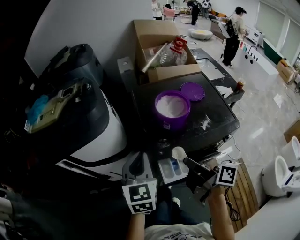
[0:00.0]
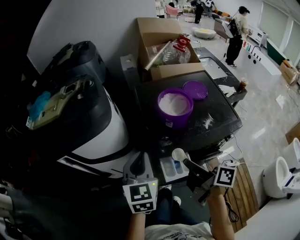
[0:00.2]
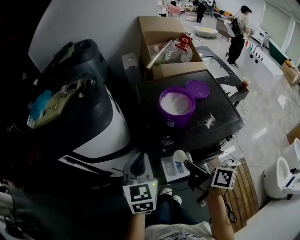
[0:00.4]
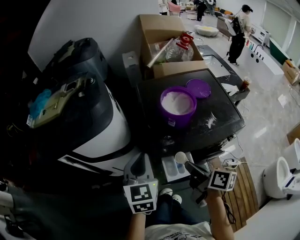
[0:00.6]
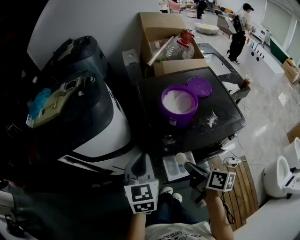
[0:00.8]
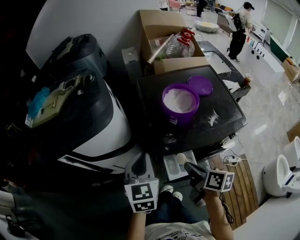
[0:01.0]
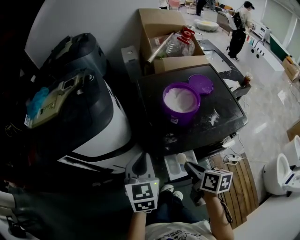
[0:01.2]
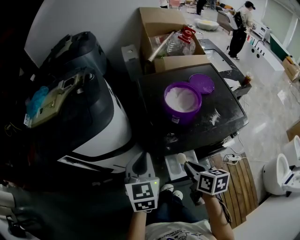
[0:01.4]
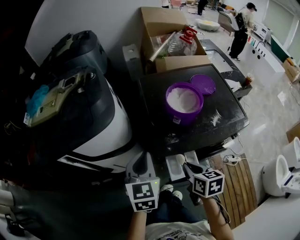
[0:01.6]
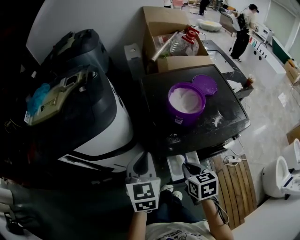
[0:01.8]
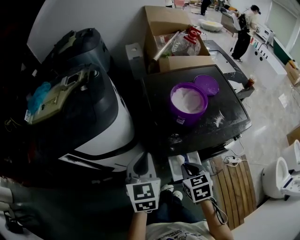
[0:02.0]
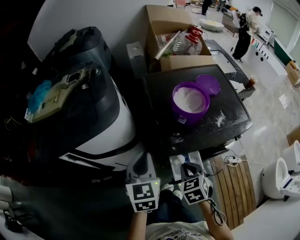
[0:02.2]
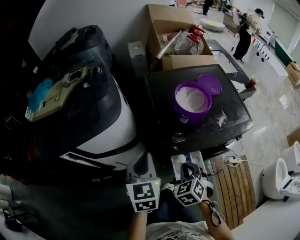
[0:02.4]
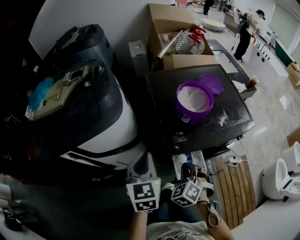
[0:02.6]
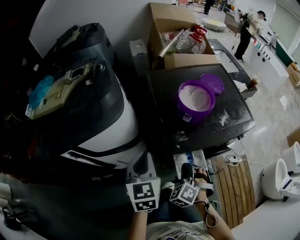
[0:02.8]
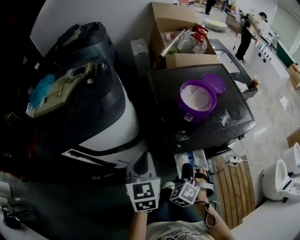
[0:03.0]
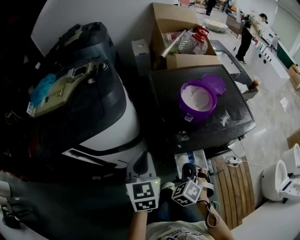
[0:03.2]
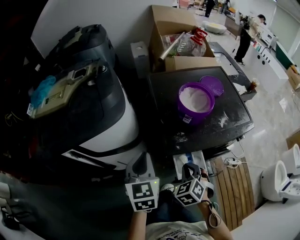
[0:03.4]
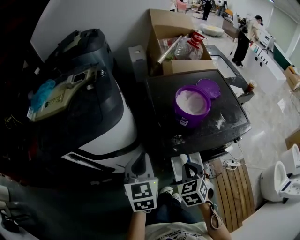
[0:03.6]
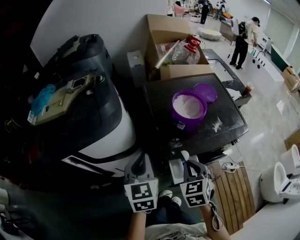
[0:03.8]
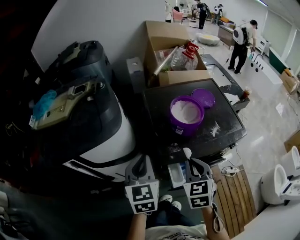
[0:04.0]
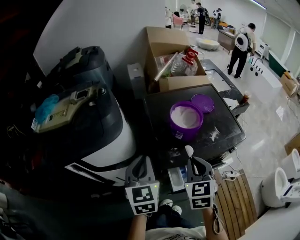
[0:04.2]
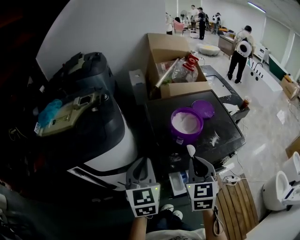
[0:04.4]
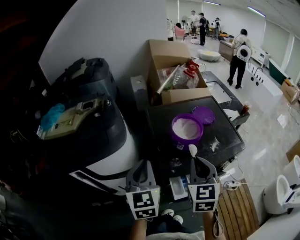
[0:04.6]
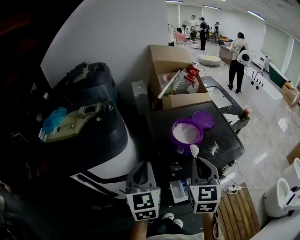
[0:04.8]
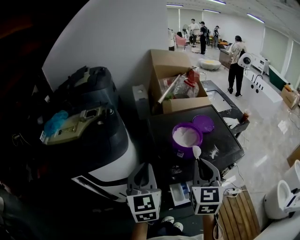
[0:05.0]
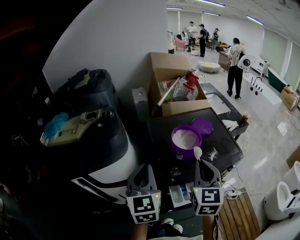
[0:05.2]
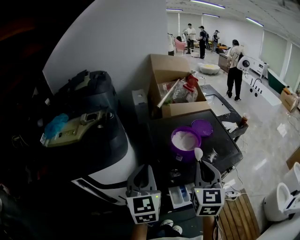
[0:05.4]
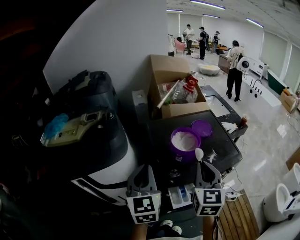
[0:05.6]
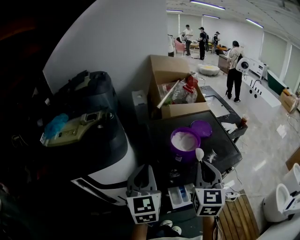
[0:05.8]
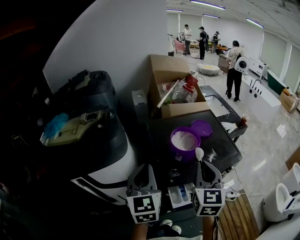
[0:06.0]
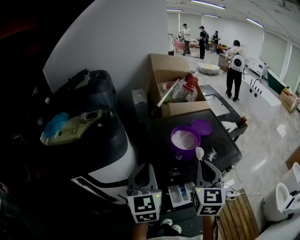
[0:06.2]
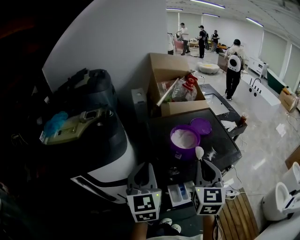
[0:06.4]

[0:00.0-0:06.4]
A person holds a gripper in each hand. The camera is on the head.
0:00.0 to 0:01.6: The right gripper moves downward, about 10 cm, and angles its fingers downward, by roughly 40 degrees, while the left gripper changes place by about 5 cm.
0:01.6 to 0:03.2: The right gripper travels downward by some 5 cm, and rotates around the line of its fingers by some 60 degrees, counterclockwise from behind.
0:03.2 to 0:04.8: The left gripper moves upward, about 10 cm. The right gripper heads upward, covering some 25 cm, and angles its fingers upward, by roughly 40 degrees.
0:04.8 to 0:06.4: The grippers make only small movements.

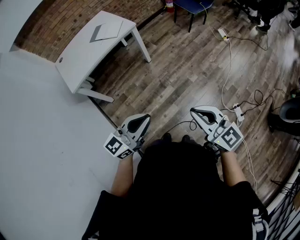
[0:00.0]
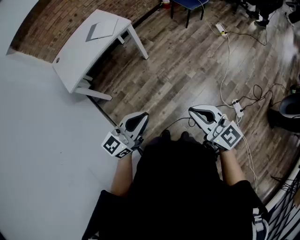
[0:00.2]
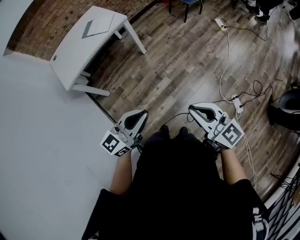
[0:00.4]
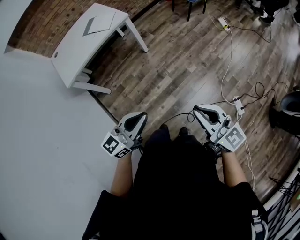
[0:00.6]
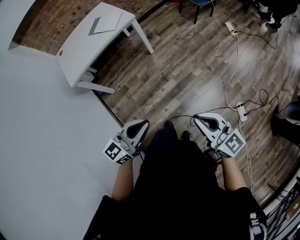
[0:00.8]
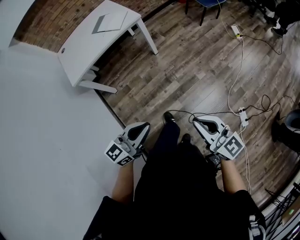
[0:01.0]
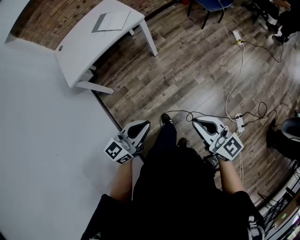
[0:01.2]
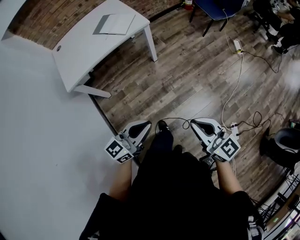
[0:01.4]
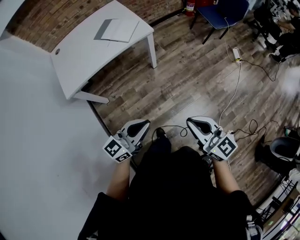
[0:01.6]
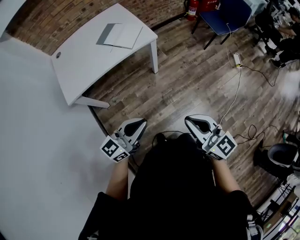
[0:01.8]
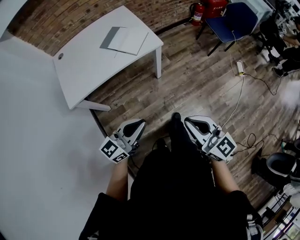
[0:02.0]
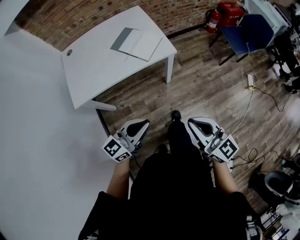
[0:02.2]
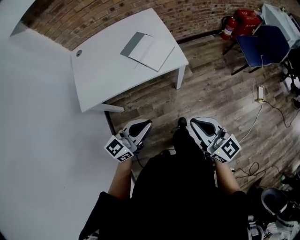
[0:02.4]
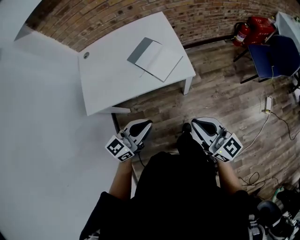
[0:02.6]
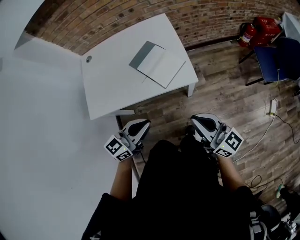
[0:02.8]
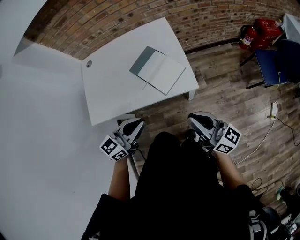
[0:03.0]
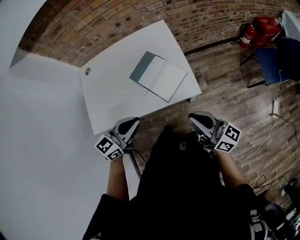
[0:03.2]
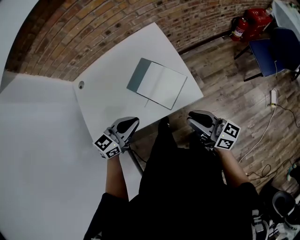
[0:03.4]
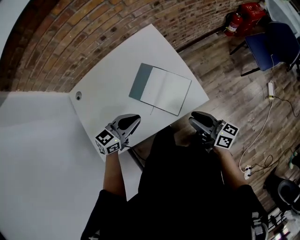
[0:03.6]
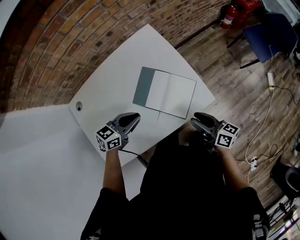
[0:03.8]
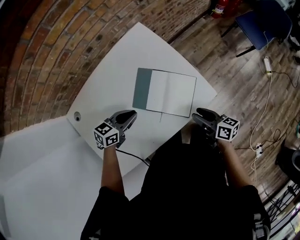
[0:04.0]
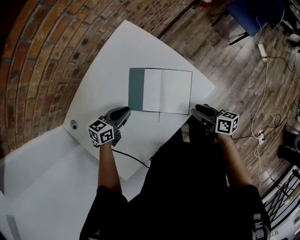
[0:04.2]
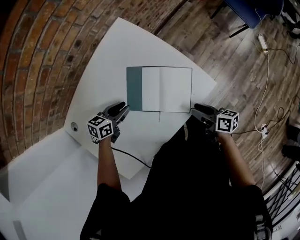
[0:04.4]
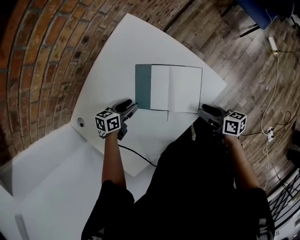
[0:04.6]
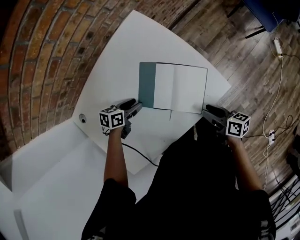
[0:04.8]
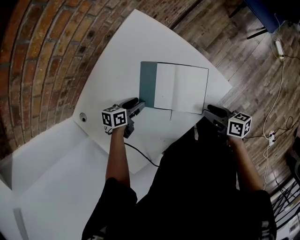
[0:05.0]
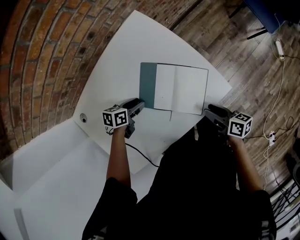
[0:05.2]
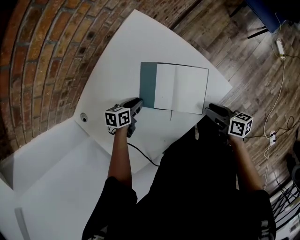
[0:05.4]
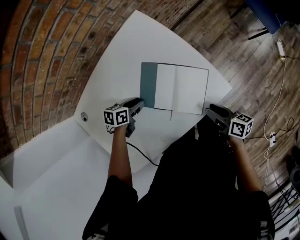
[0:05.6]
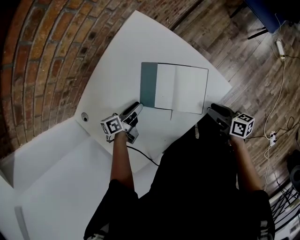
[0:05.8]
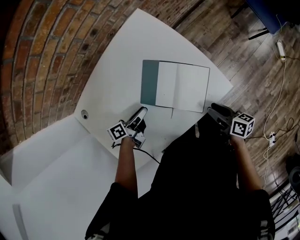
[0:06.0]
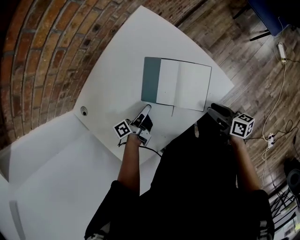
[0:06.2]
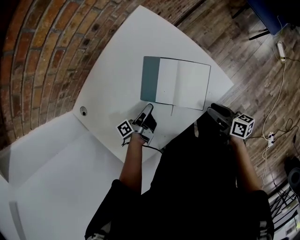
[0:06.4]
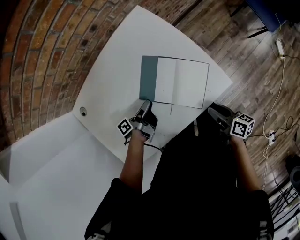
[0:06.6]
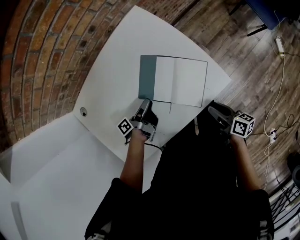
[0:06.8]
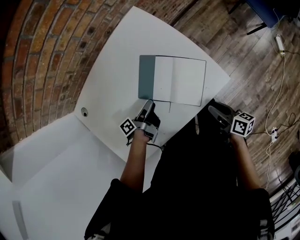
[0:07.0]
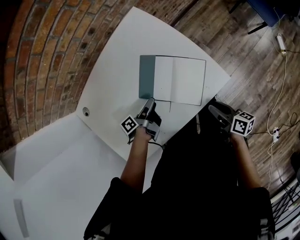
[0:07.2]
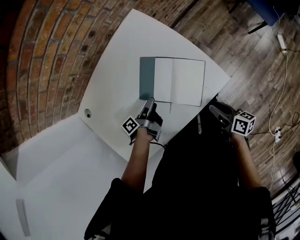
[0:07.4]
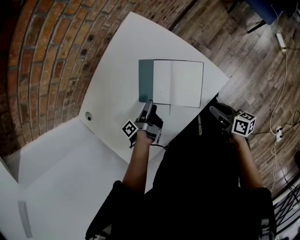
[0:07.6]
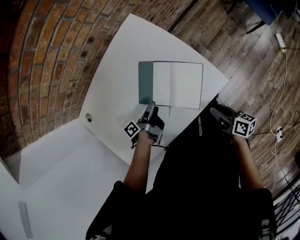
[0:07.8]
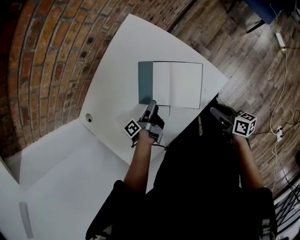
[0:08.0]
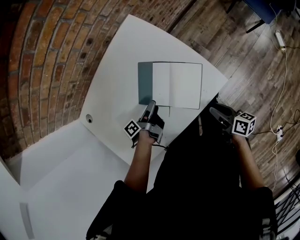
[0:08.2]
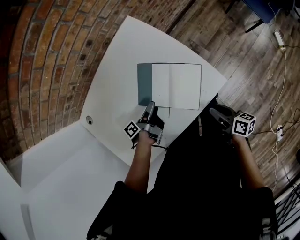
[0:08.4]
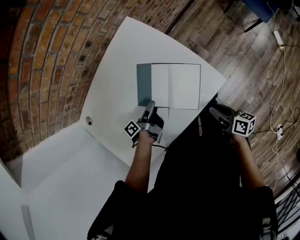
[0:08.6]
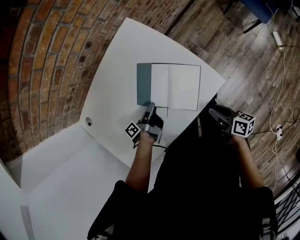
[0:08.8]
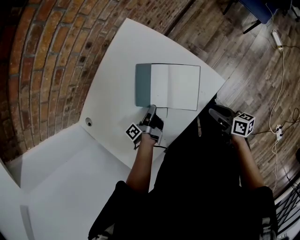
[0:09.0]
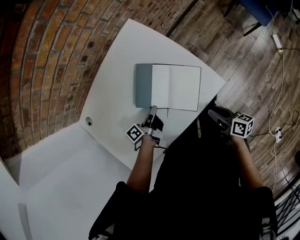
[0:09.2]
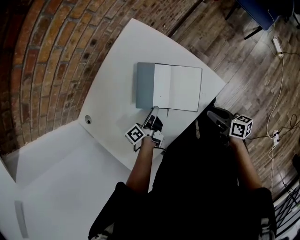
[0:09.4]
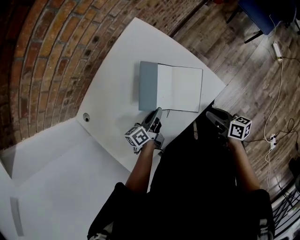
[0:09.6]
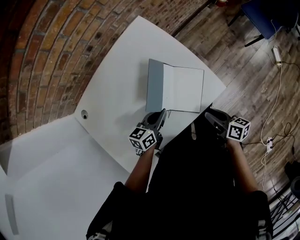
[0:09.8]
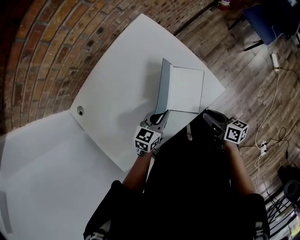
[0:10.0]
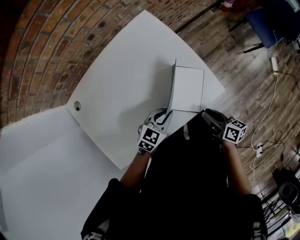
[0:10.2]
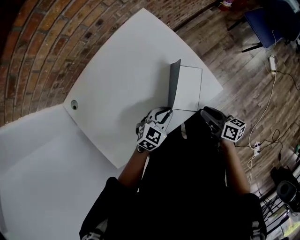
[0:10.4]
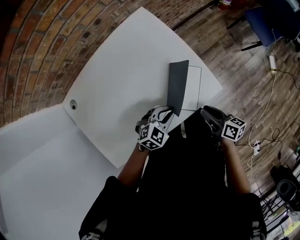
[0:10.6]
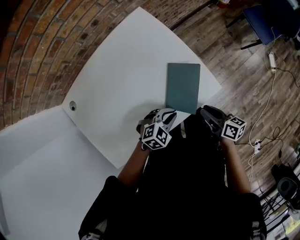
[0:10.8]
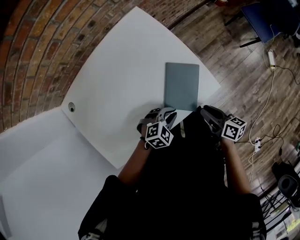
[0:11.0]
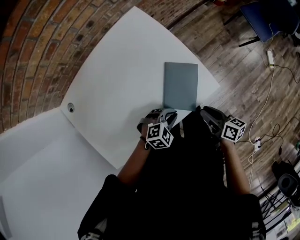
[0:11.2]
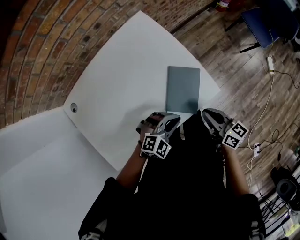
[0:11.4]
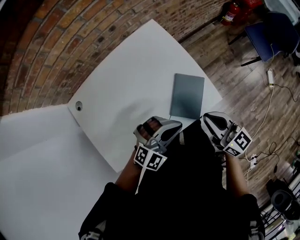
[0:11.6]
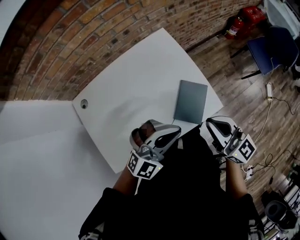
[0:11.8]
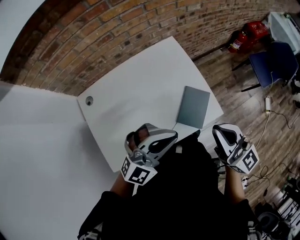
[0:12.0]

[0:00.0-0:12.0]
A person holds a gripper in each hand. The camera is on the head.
0:00.0 to 0:01.6: The two grippers go about 20 cm forward.
0:01.6 to 0:03.0: The pair of grippers is taken forward, roughly 40 cm. The right gripper turns by roughly 40 degrees. The left gripper swivels some 20 degrees.
0:03.0 to 0:04.4: The right gripper travels downward by approximately 25 cm, points its fingers approximately 40 degrees further downward, and opens; the left gripper changes place by approximately 40 cm, and changes its angle by approximately 50 degrees.
0:04.4 to 0:06.0: The left gripper twists approximately 50 degrees counterclockwise, seen from behind.
0:06.0 to 0:07.6: The left gripper swivels approximately 30 degrees, and opens up.
0:07.6 to 0:09.0: The left gripper closes its fingers.
0:09.0 to 0:10.4: The left gripper shifts approximately 10 cm to the right and backward, and rotates around the line of its fingers by about 100 degrees, clockwise from behind.
0:10.4 to 0:12.0: The two grippers go some 30 cm upward. The left gripper angles its fingers upward, by some 30 degrees; the right gripper rolls counterclockwise, seen from behind, by approximately 50 degrees, and closes.

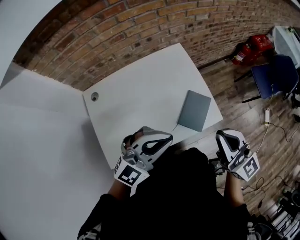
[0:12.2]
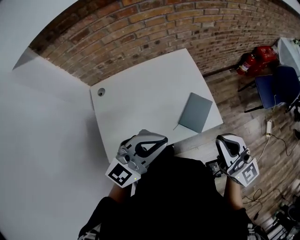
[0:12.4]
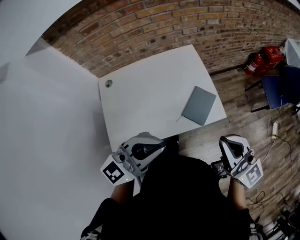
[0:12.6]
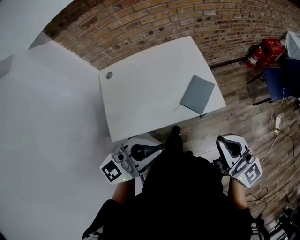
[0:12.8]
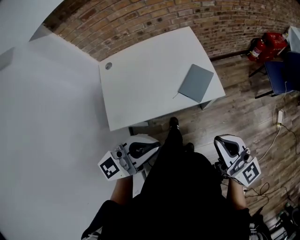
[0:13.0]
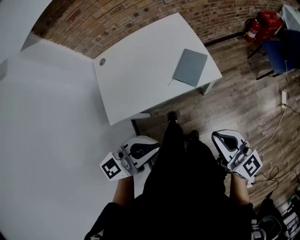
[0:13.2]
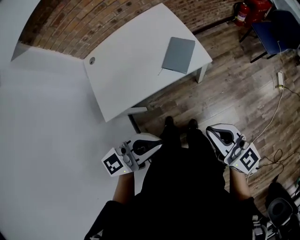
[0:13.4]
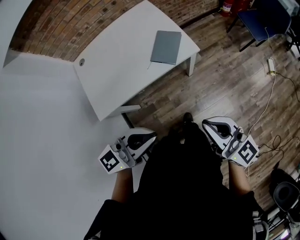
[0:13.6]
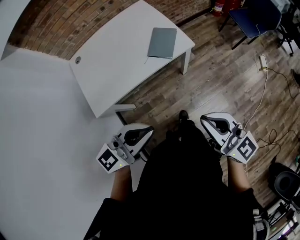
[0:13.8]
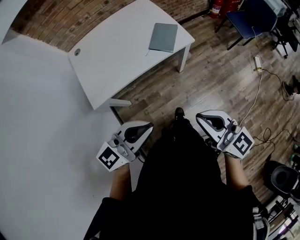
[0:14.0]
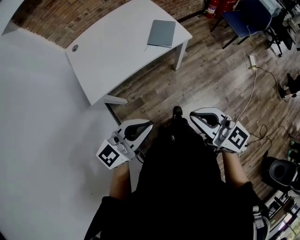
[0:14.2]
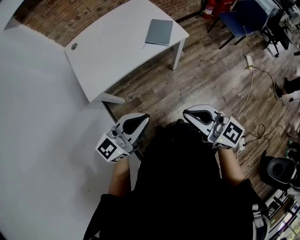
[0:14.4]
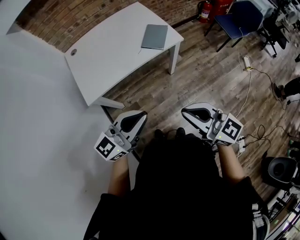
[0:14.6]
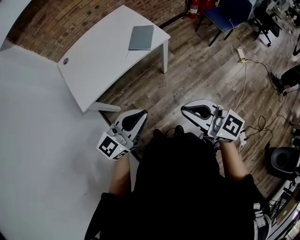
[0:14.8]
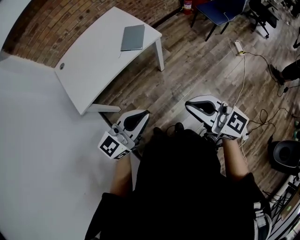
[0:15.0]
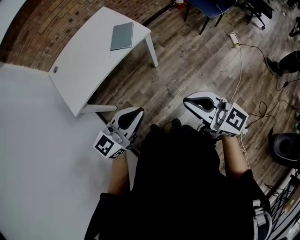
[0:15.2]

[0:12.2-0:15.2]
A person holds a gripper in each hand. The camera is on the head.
0:12.2 to 0:13.8: The two grippers go roughly 35 cm backward. The left gripper swivels about 30 degrees.
0:13.8 to 0:15.2: The right gripper is displaced backward and to the right by some 15 cm, while the left gripper shifts approximately 15 cm to the right and backward.

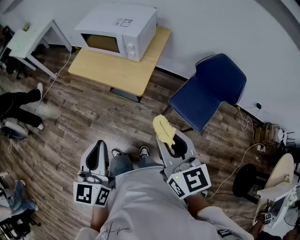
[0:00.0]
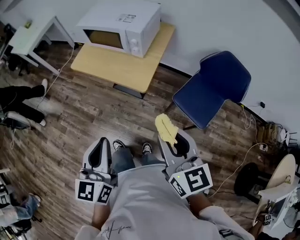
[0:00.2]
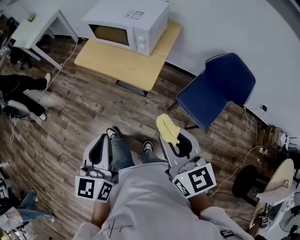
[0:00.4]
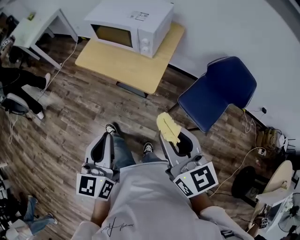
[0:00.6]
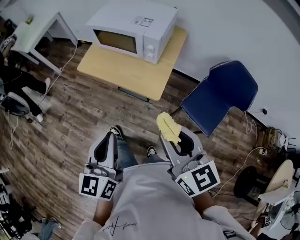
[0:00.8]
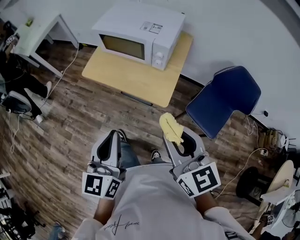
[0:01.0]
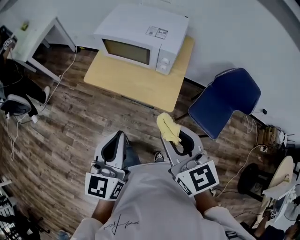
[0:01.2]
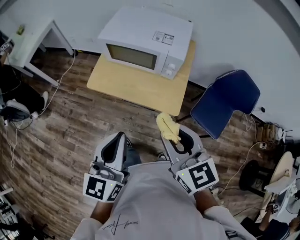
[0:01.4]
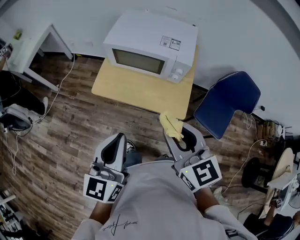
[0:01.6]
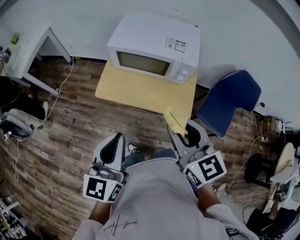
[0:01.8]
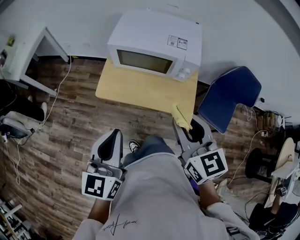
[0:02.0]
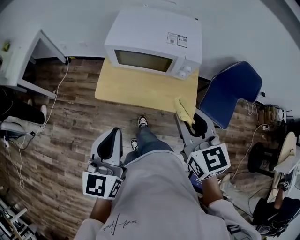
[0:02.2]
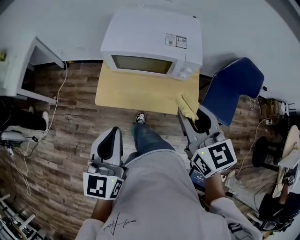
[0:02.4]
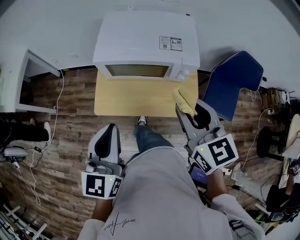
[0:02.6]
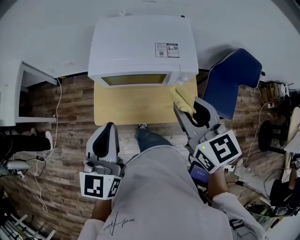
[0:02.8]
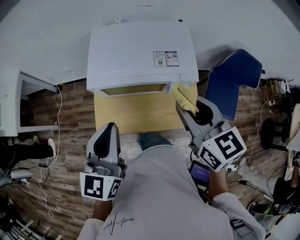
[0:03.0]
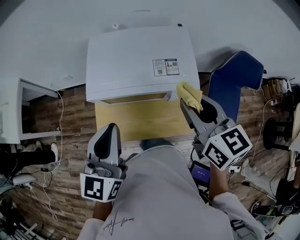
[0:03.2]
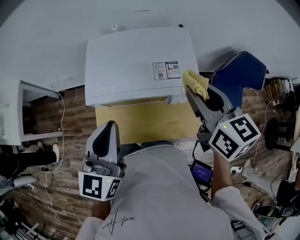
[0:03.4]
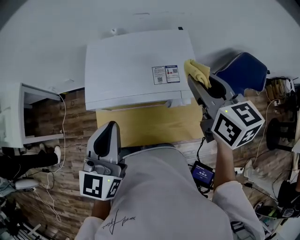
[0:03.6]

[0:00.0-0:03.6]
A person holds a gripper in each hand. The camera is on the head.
0:00.0 to 0:01.8: The right gripper moves to the left and forward, approximately 35 cm, while the left gripper moves forward and to the left, about 35 cm.
0:01.8 to 0:03.6: Both grippers travel together forward, some 30 cm. The right gripper rotates approximately 20 degrees.
